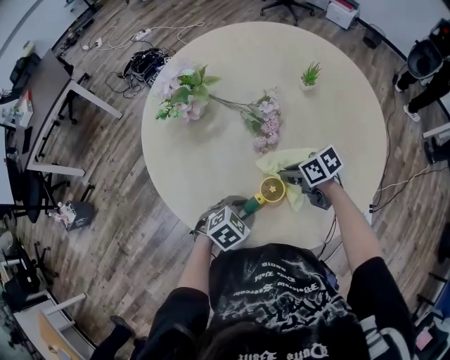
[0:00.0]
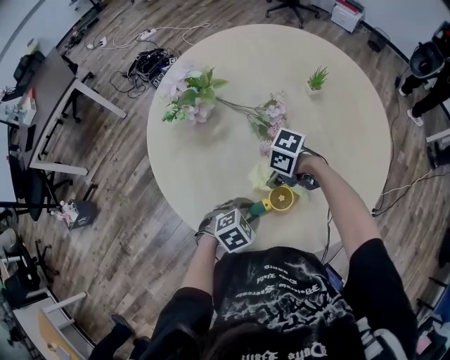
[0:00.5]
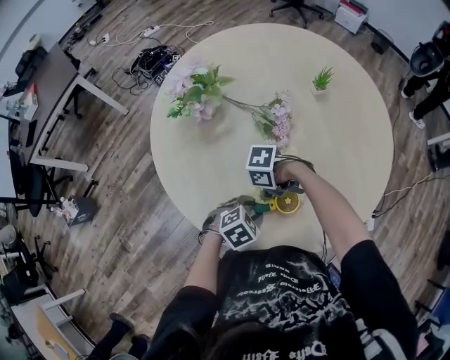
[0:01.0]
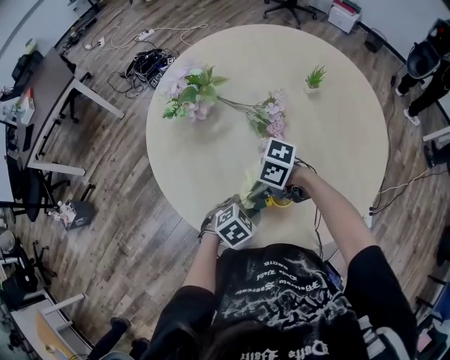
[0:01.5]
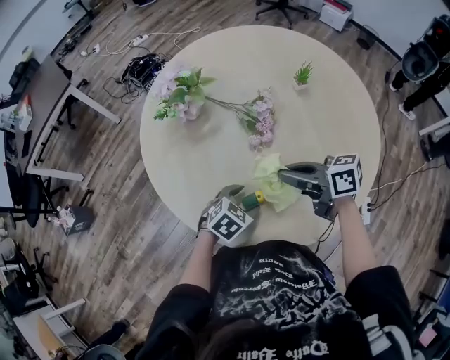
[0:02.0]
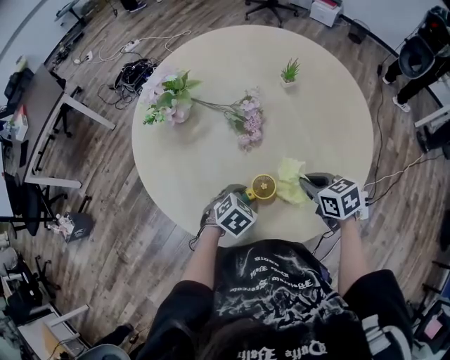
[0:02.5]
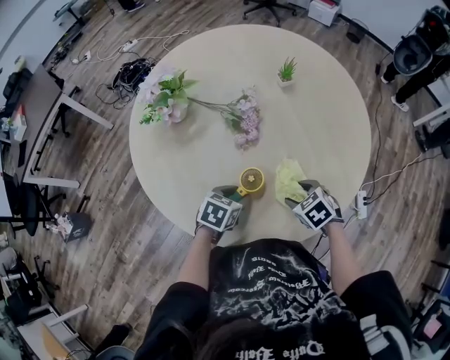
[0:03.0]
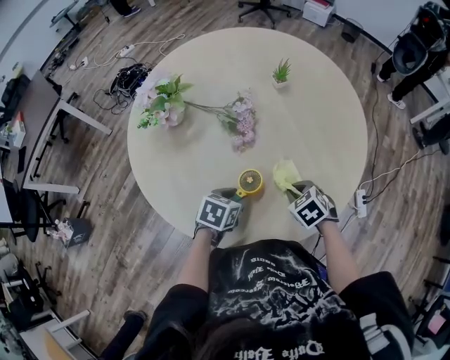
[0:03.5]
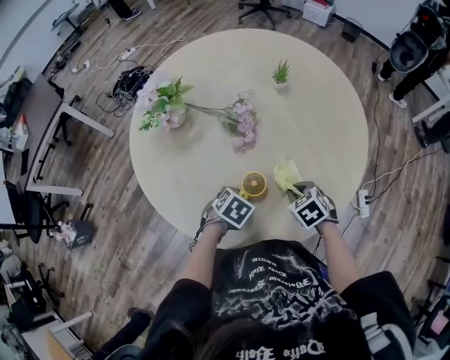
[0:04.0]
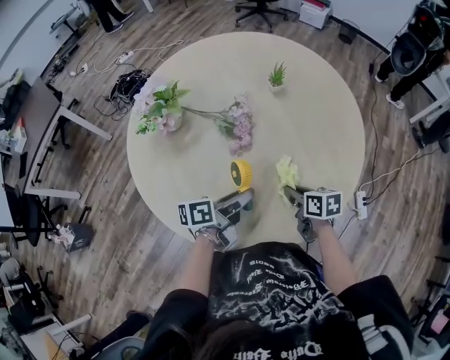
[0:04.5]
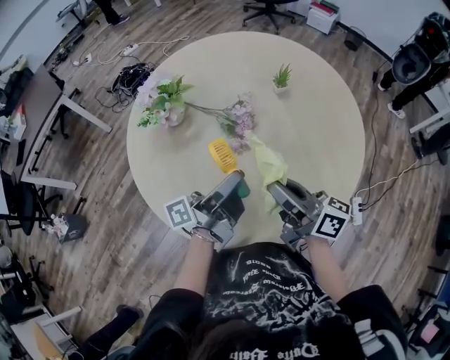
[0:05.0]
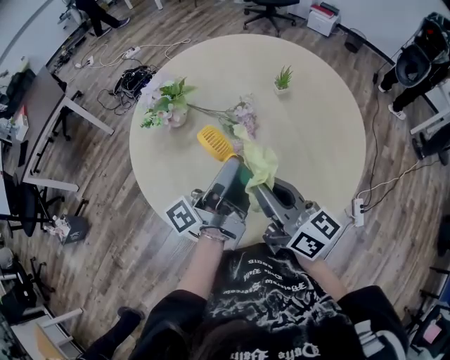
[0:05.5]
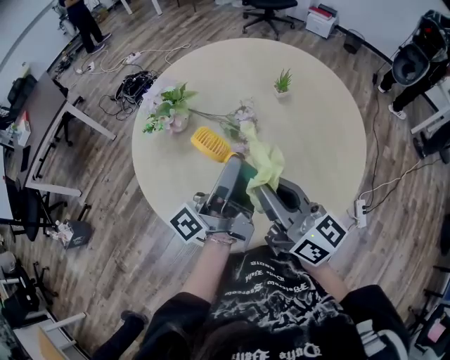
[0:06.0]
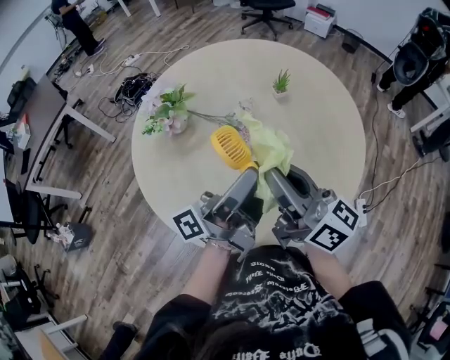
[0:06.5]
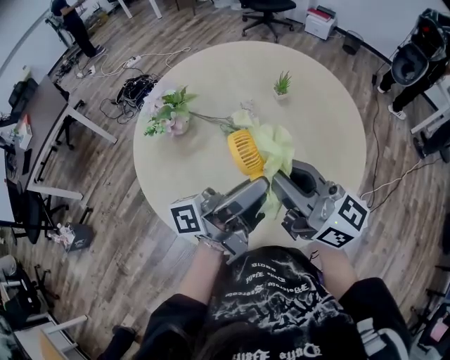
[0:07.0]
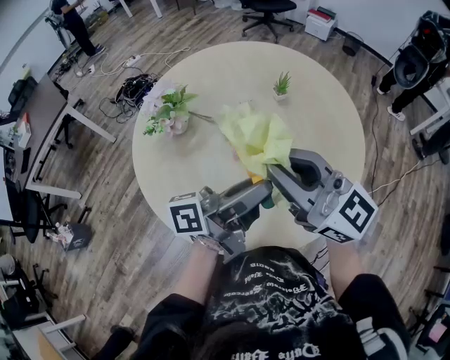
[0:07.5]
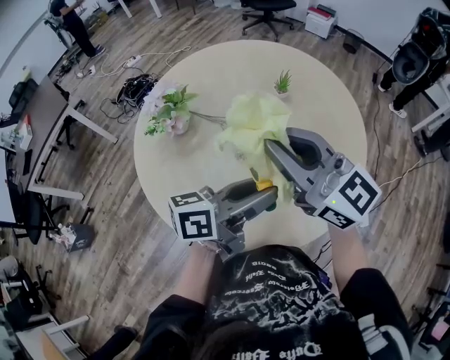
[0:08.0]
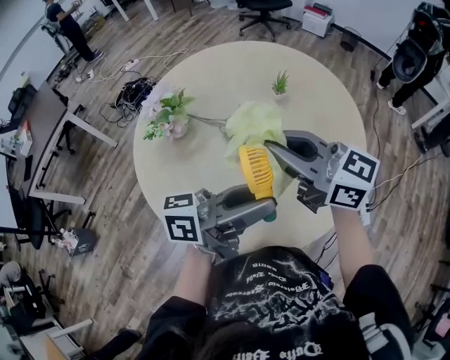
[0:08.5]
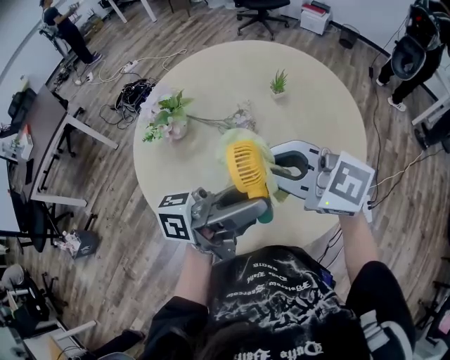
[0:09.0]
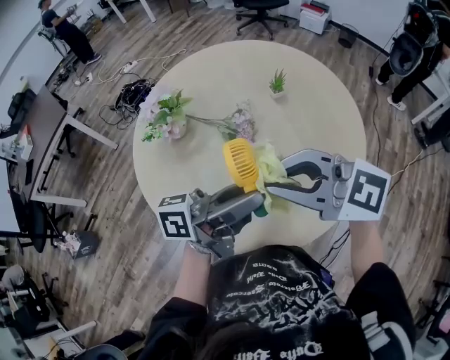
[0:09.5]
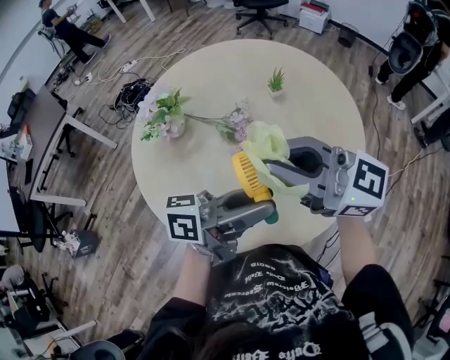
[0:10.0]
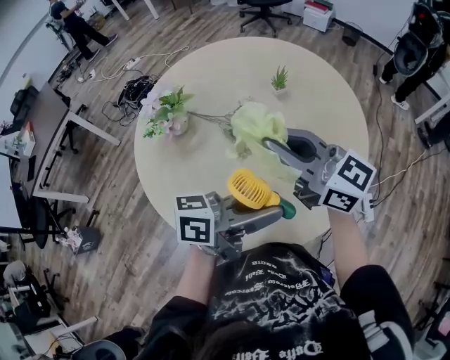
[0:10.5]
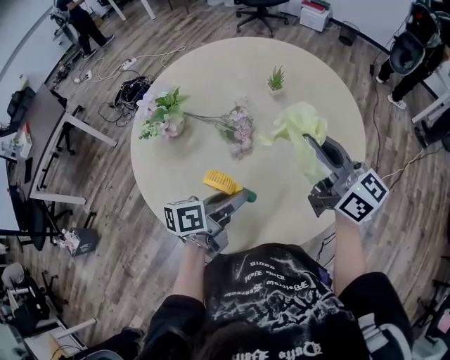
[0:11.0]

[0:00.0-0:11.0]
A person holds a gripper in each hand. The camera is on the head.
0:00.0 to 0:02.0: The left gripper opens, while the right gripper shifts about 15 cm upward, and swivels approximately 30 degrees.
0:02.0 to 0:03.5: The left gripper swivels approximately 20 degrees, and closes up; the right gripper is displaced downward by roughly 15 cm, tilts its fingers roughly 50 degrees downward, and opens, then closes again.
0:03.5 to 0:05.5: The right gripper heads upward and to the left, covering approximately 30 cm, and tilts its fingers some 70 degrees upward; the left gripper moves upward, some 25 cm, and points its fingers some 80 degrees further upward.
0:05.5 to 0:07.5: The left gripper travels to the right by approximately 5 cm, and turns by some 30 degrees; the right gripper heads upward, covering approximately 10 cm, and changes its angle by approximately 30 degrees.
0:07.5 to 0:09.0: The right gripper turns by some 30 degrees.
0:09.0 to 0:11.0: The left gripper moves downward, some 20 cm, and angles its fingers downward, by about 40 degrees, while the right gripper moves approximately 15 cm, and rotates about 50 degrees.

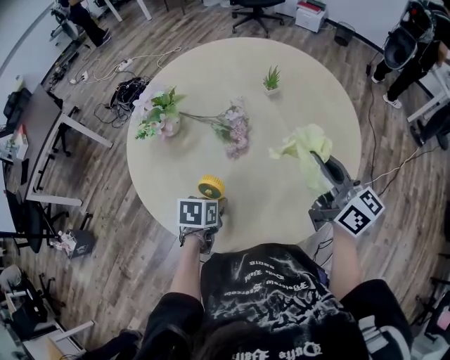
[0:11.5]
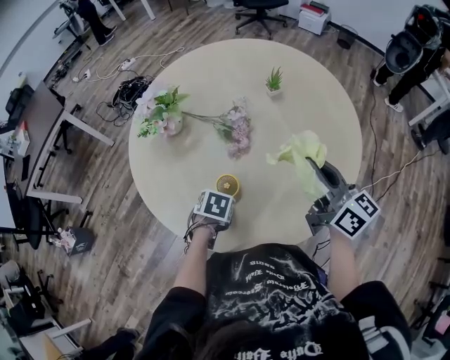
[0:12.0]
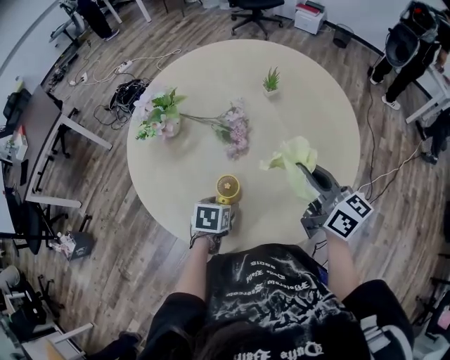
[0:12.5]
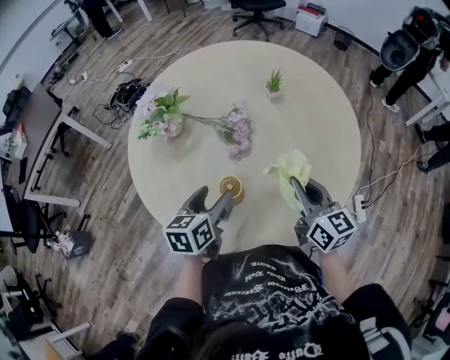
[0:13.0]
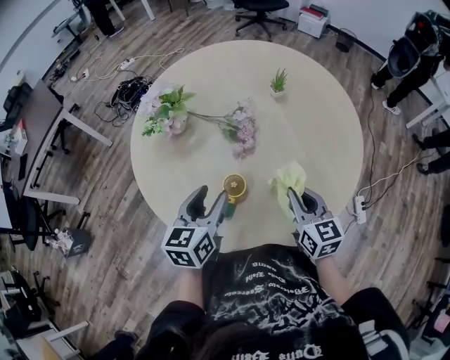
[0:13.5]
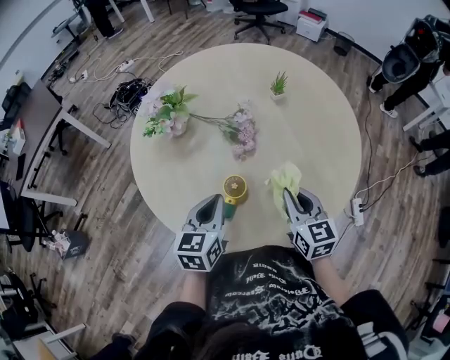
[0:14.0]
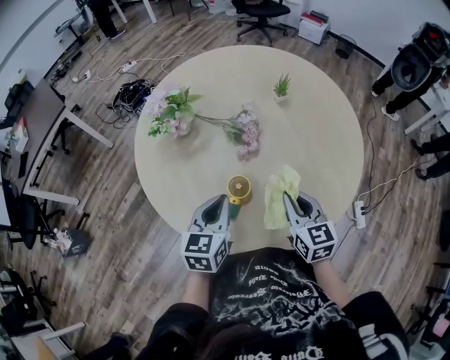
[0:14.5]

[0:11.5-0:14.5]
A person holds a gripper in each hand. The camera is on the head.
0:11.5 to 0:13.0: The right gripper moves downward, some 10 cm. Meanwhile the left gripper is displaced upward by about 10 cm, changes its angle by about 30 degrees, and opens up.
0:13.0 to 0:14.5: The left gripper closes; the right gripper changes place by some 5 cm.

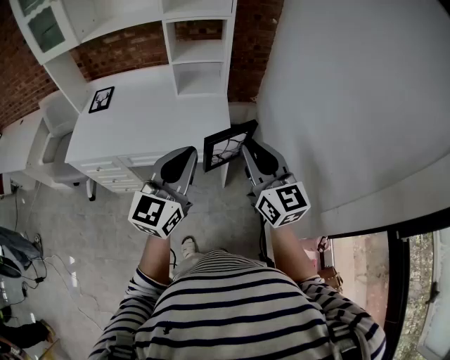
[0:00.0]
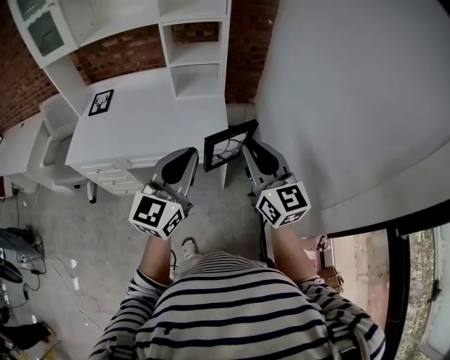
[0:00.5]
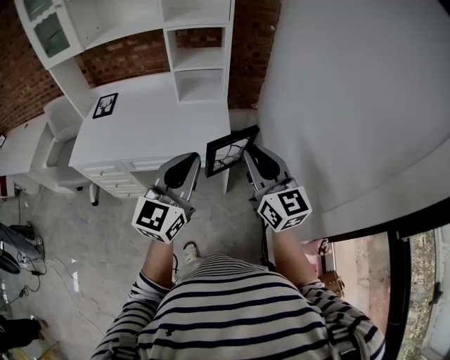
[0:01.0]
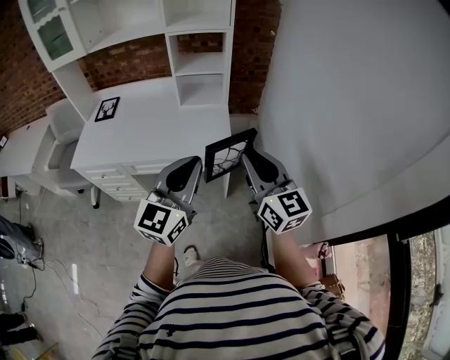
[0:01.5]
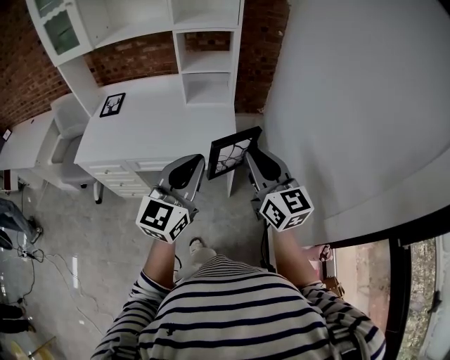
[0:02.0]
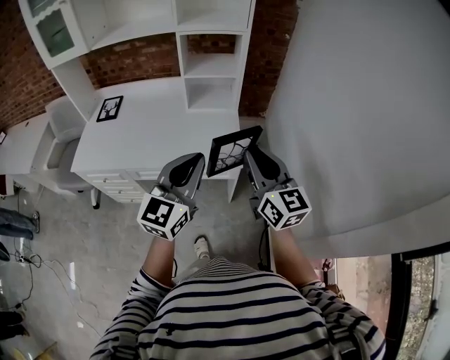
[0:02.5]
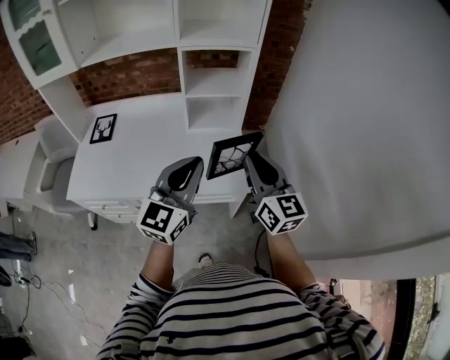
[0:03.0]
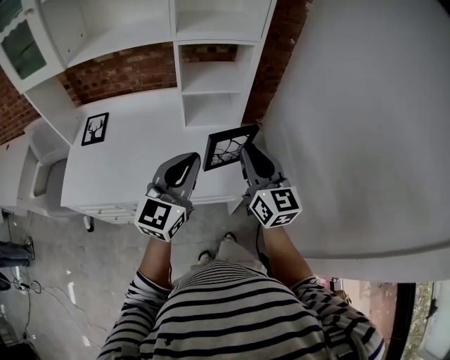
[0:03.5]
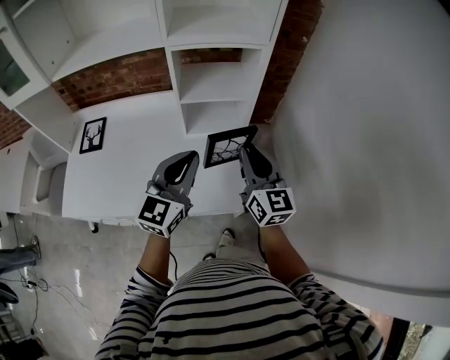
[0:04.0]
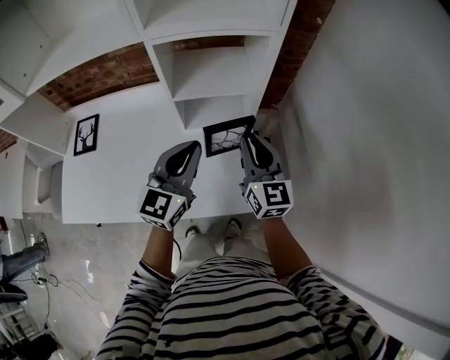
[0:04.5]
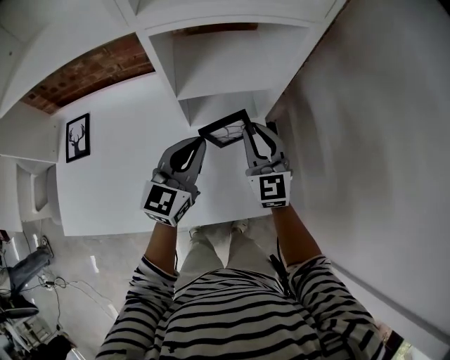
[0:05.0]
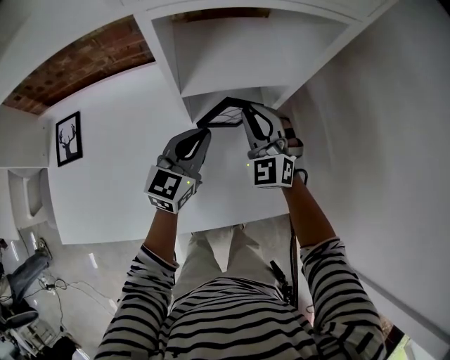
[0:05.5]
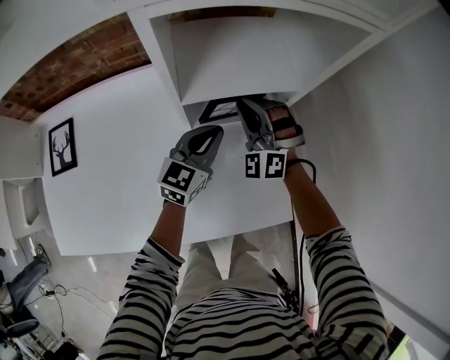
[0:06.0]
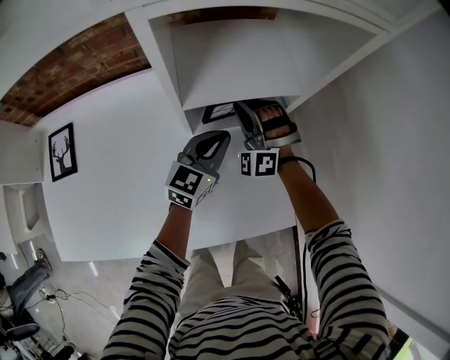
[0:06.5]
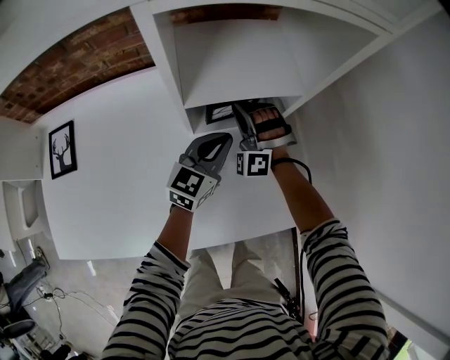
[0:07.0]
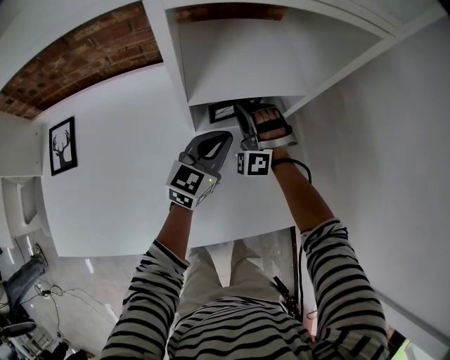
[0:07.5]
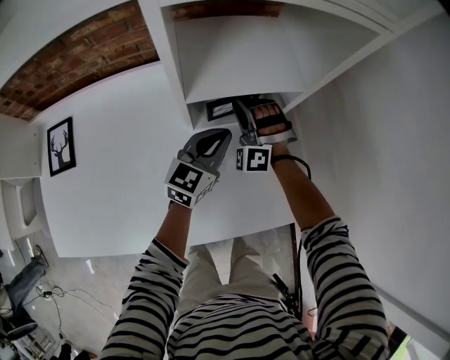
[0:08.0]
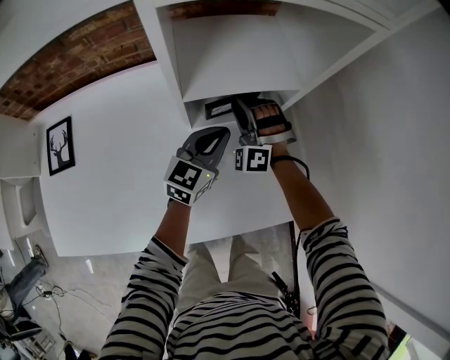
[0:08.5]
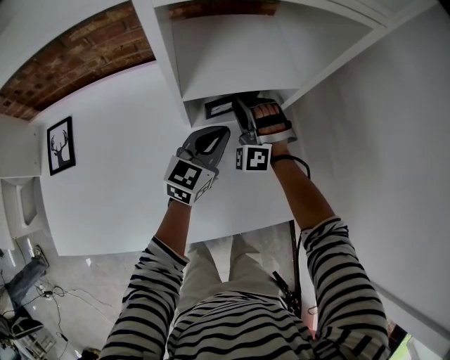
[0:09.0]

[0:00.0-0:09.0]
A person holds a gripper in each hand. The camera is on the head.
0:00.0 to 0:02.0: The grippers stay close to where they were, moving slightly.
0:02.0 to 0:04.5: Both grippers are carried forward, approximately 40 cm.
0:04.5 to 0:07.0: The left gripper goes about 25 cm downward and forward. The right gripper travels downward, forward and to the left by some 30 cm, and rolls counterclockwise, seen from behind, by roughly 90 degrees.
0:07.0 to 0:09.0: The two grippers keep their place.

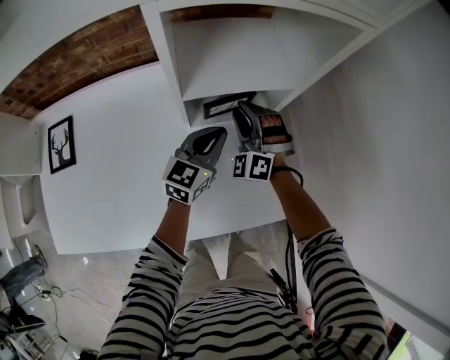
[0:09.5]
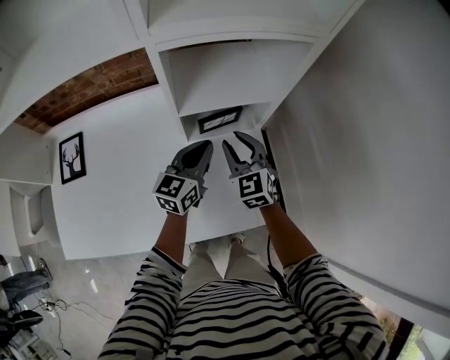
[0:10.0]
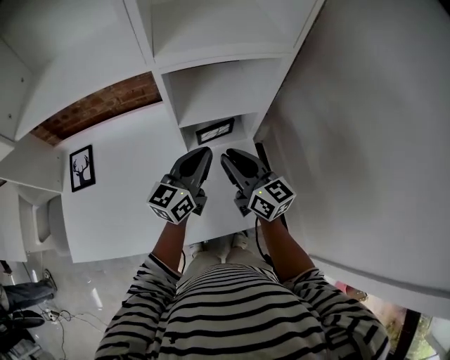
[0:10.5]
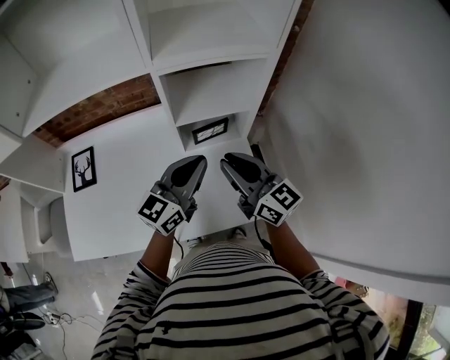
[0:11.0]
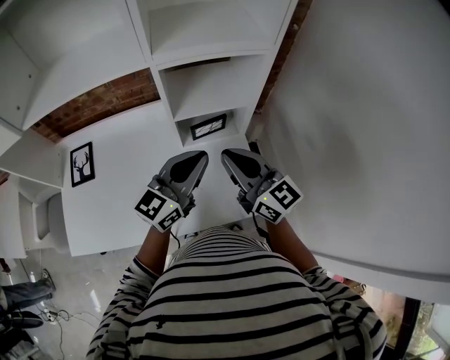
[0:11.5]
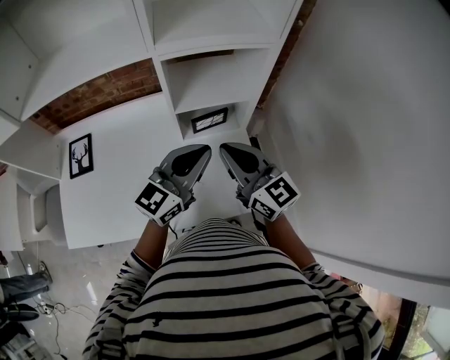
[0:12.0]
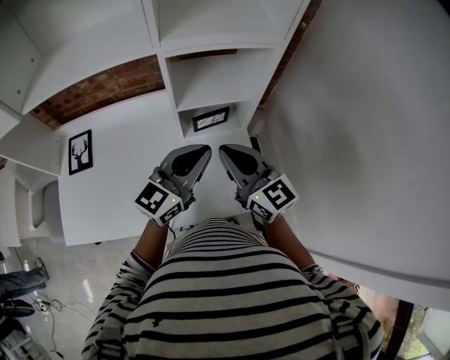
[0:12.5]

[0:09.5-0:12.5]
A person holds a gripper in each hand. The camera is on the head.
0:09.5 to 0:11.0: The two grippers go some 25 cm upward and backward. The right gripper rotates around the line of its fingers by some 80 degrees, clockwise from behind.
0:11.0 to 0:12.5: The grippers stay close to where they were, moving slightly.
